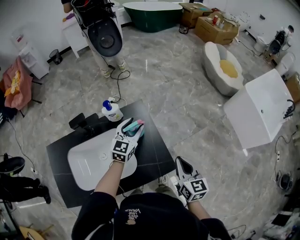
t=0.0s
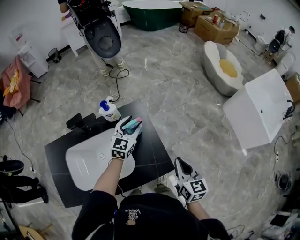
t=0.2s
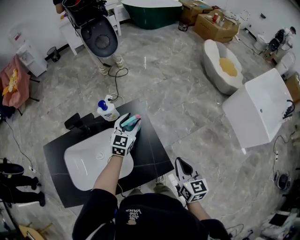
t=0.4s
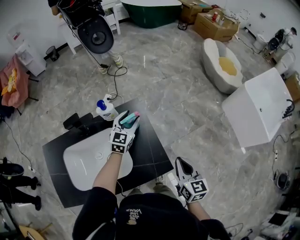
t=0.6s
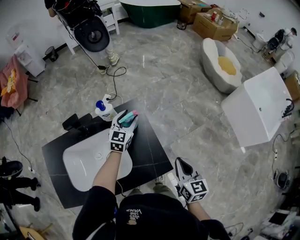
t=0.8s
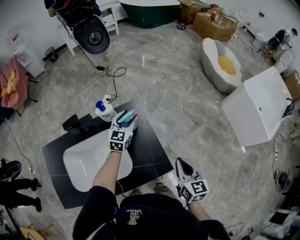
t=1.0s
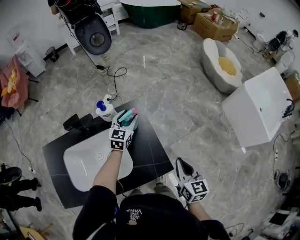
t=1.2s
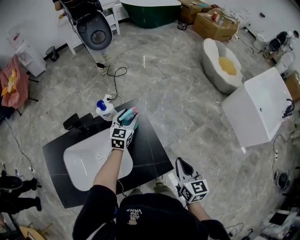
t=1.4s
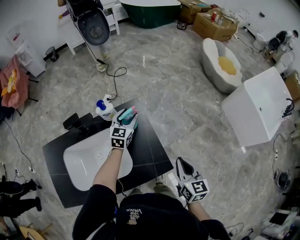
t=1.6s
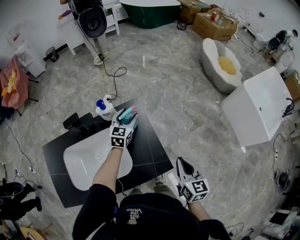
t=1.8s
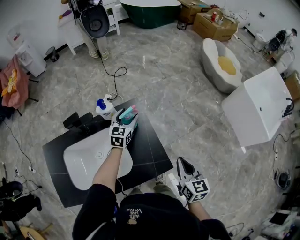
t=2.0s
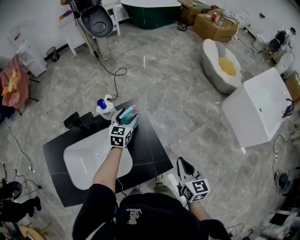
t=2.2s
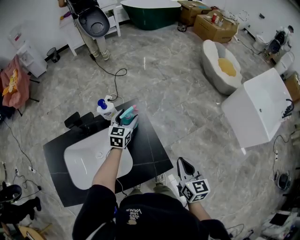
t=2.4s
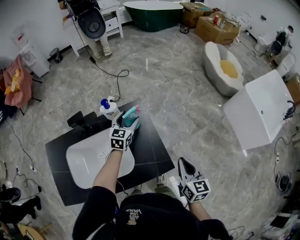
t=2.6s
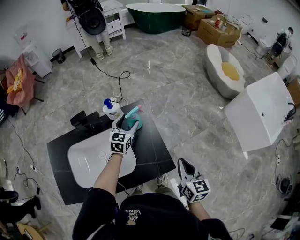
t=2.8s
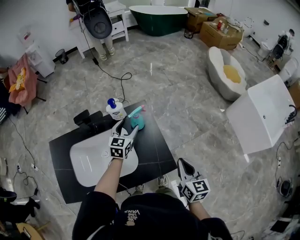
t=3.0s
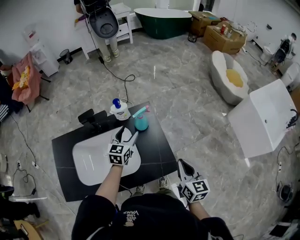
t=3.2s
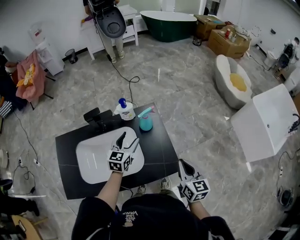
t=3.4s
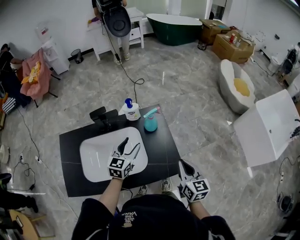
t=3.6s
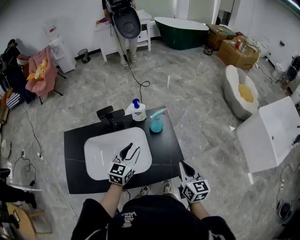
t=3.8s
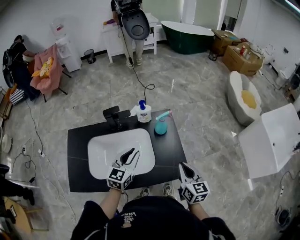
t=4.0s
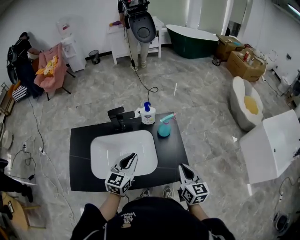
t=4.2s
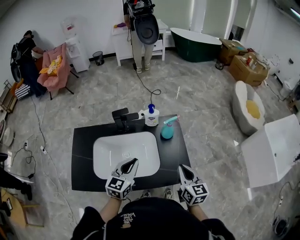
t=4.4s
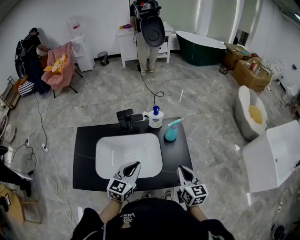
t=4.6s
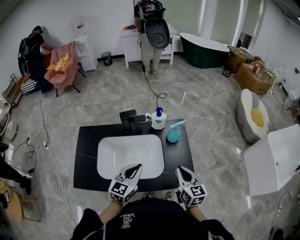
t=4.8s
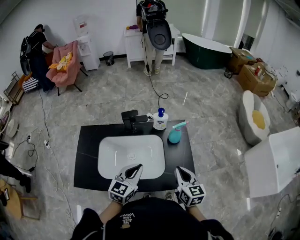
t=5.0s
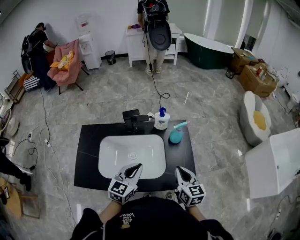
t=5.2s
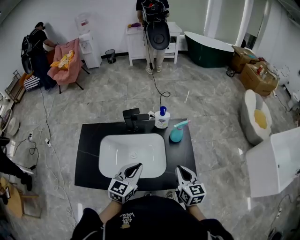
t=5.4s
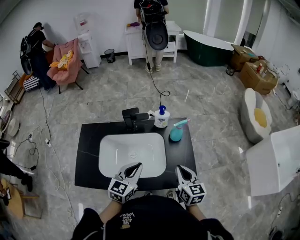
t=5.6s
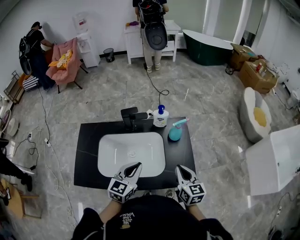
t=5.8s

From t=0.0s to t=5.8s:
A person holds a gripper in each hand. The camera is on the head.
From t=0.0s to t=1.4s: The left gripper heads forward, covering some 5 cm.
From t=1.4s to t=2.8s: The grippers make only small movements.
From t=2.8s to t=4.4s: The right gripper travels to the left by about 15 cm, while the left gripper travels backward and to the left by approximately 30 cm, and closes up.
From t=4.4s to t=5.8s: The grippers stay close to where they were, moving slightly.

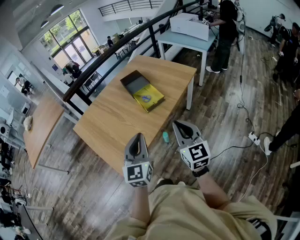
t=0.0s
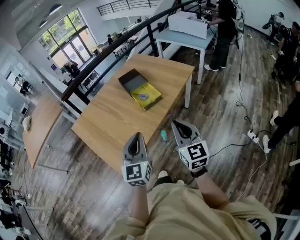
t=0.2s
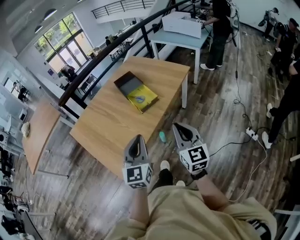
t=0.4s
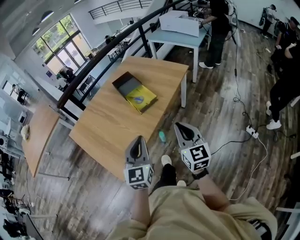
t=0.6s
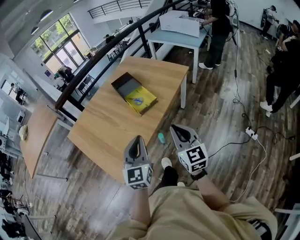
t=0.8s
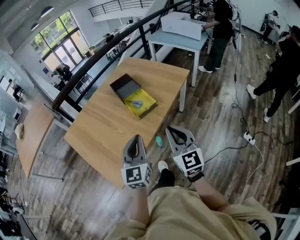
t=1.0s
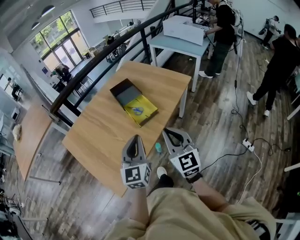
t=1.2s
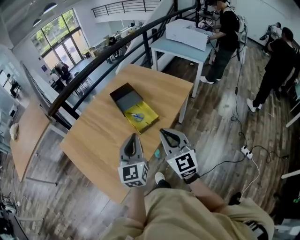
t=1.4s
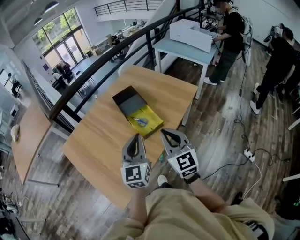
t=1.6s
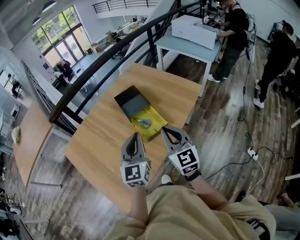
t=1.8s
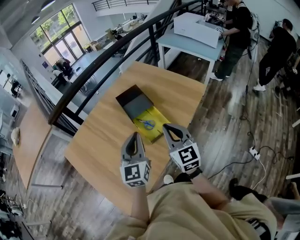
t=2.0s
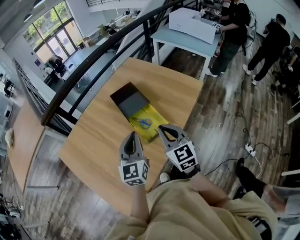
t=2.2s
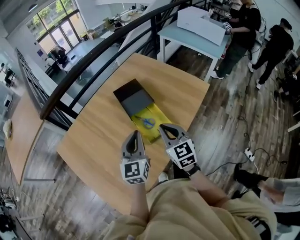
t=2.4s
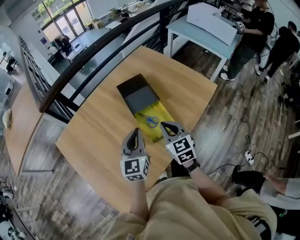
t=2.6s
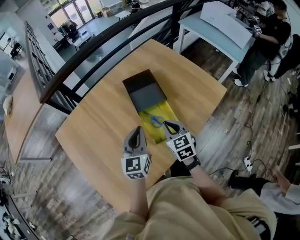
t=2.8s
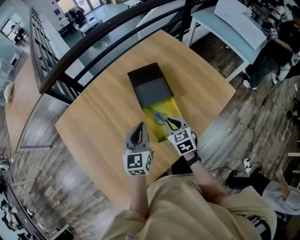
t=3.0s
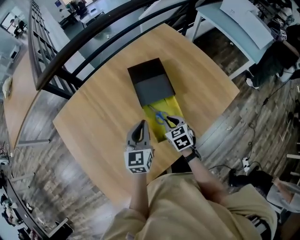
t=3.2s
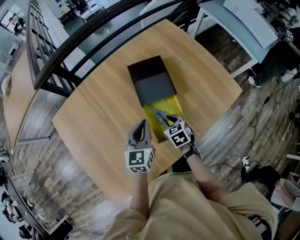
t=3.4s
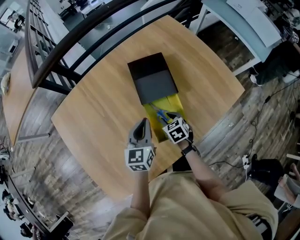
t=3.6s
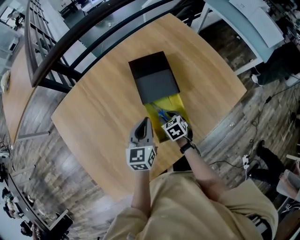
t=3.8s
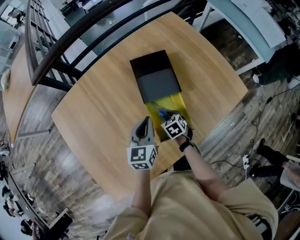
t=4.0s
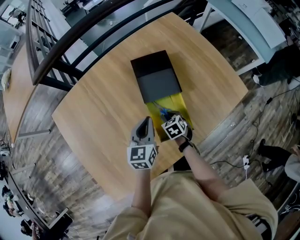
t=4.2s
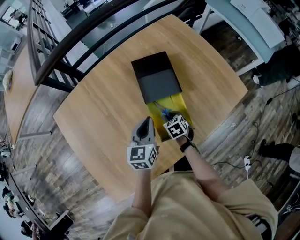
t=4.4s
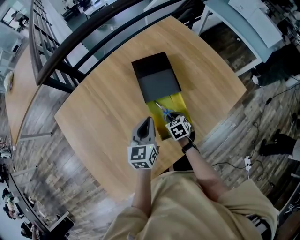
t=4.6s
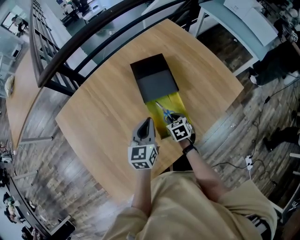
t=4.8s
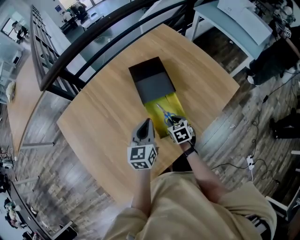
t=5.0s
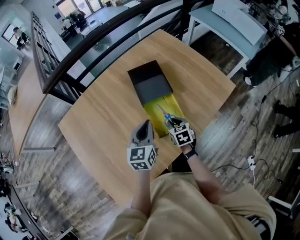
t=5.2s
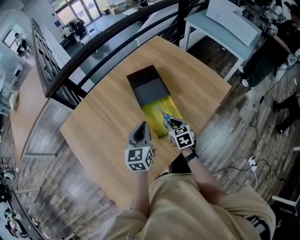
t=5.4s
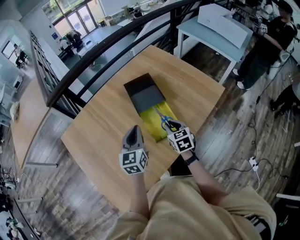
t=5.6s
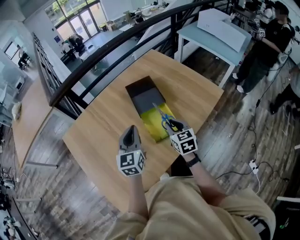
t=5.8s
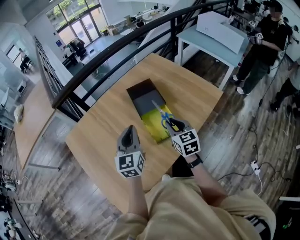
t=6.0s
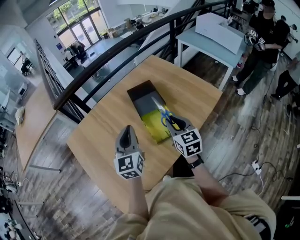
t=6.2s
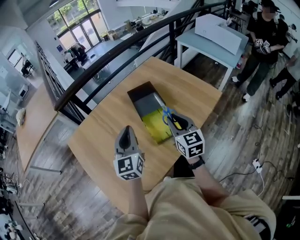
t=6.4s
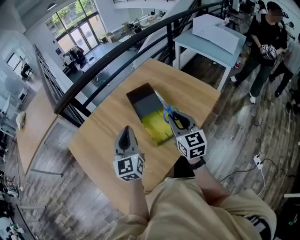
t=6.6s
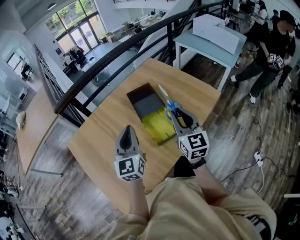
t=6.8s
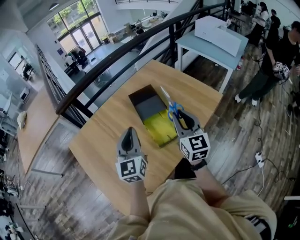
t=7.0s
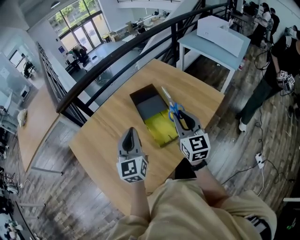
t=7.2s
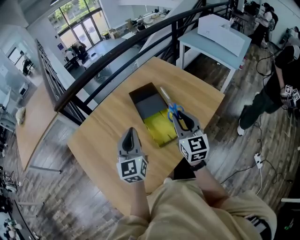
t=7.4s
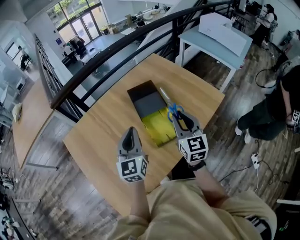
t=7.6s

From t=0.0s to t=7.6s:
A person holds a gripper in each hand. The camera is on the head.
From t=0.0s to t=1.6s: The grippers both shift forward by some 25 cm.
From t=1.6s to t=3.0s: Both grippers travel together forward and downward, roughly 30 cm. The right gripper tilts its fingers about 40 degrees downward; the left gripper changes its angle by some 20 degrees.
From t=3.0s to t=4.6s: The left gripper travels downward by some 5 cm. Meanwhile the right gripper travels downward by roughly 15 cm.
From t=4.6s to t=6.0s: The left gripper shifts roughly 15 cm upward and backward, and swivels some 20 degrees. Meanwhile the right gripper is displaced upward and backward by some 25 cm, and tips its fingers upward by some 40 degrees.
From t=6.0s to t=7.6s: The right gripper heads upward, covering approximately 10 cm.

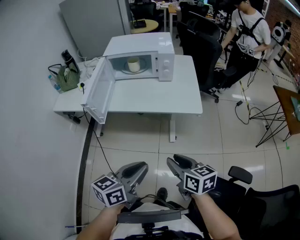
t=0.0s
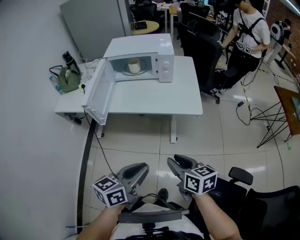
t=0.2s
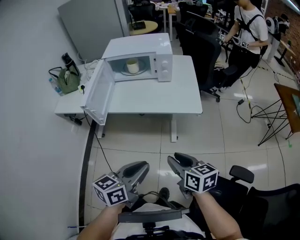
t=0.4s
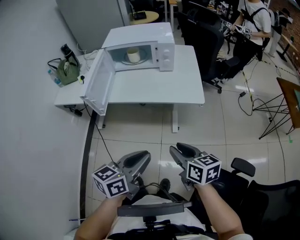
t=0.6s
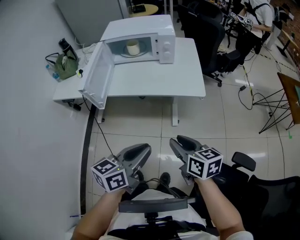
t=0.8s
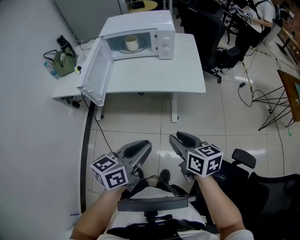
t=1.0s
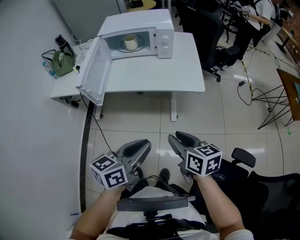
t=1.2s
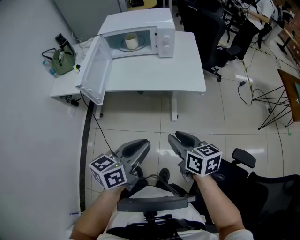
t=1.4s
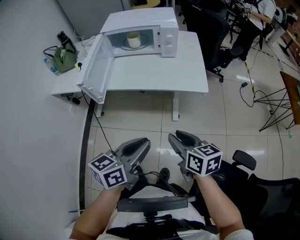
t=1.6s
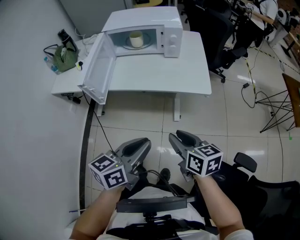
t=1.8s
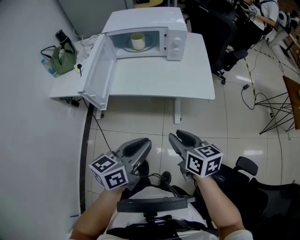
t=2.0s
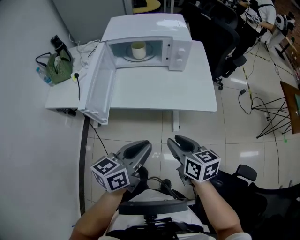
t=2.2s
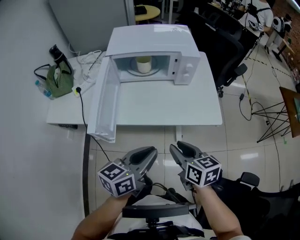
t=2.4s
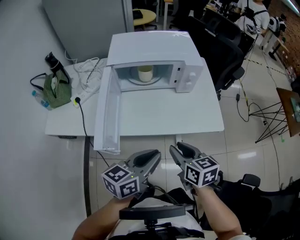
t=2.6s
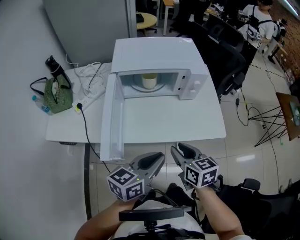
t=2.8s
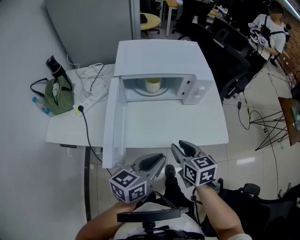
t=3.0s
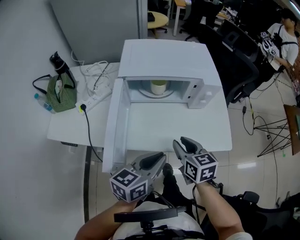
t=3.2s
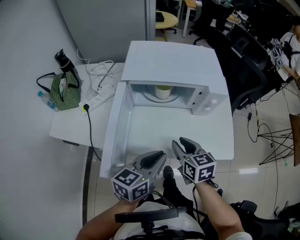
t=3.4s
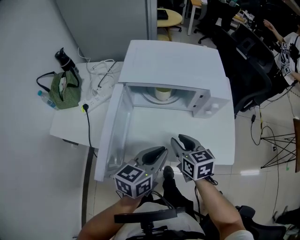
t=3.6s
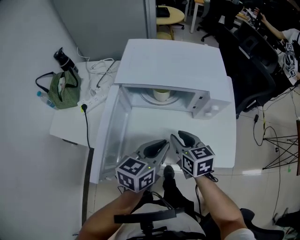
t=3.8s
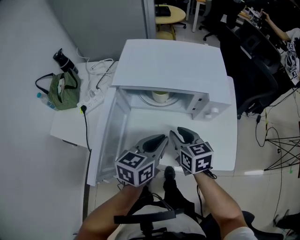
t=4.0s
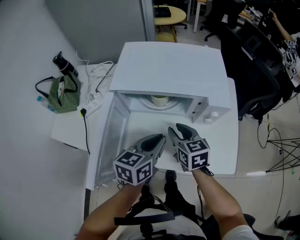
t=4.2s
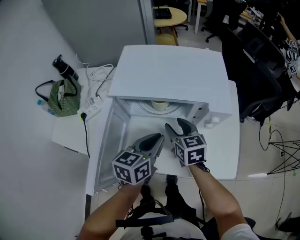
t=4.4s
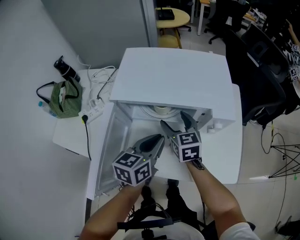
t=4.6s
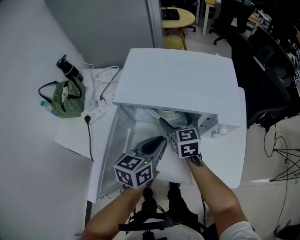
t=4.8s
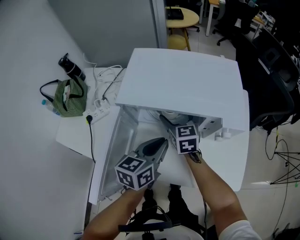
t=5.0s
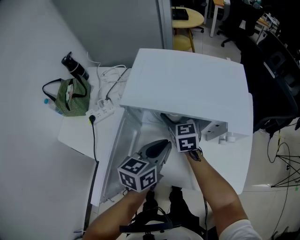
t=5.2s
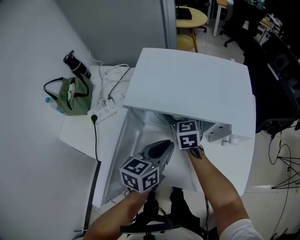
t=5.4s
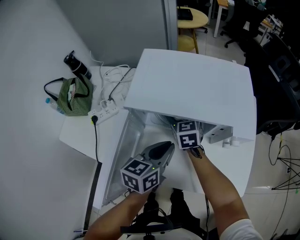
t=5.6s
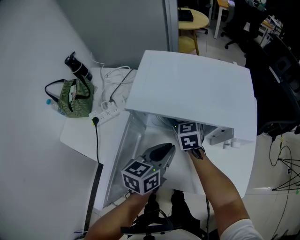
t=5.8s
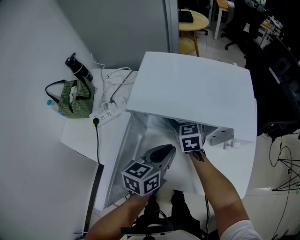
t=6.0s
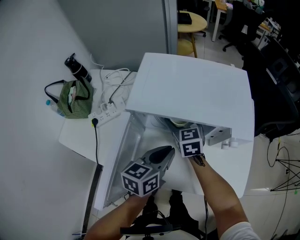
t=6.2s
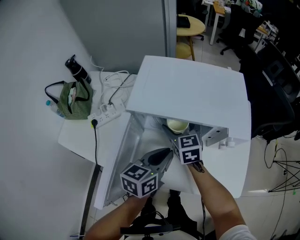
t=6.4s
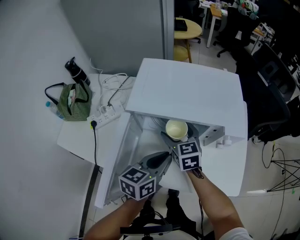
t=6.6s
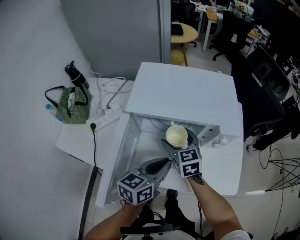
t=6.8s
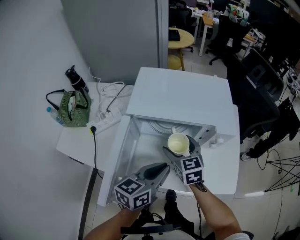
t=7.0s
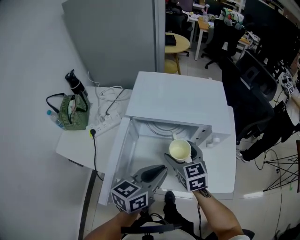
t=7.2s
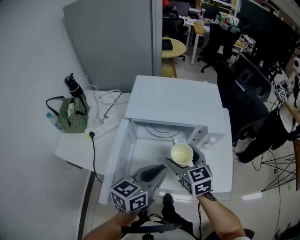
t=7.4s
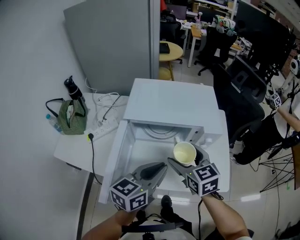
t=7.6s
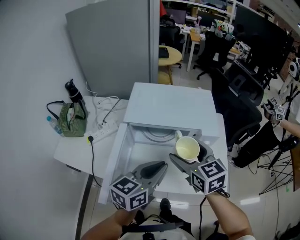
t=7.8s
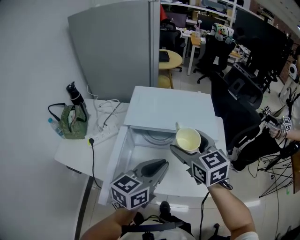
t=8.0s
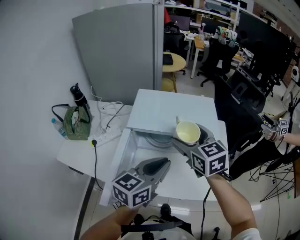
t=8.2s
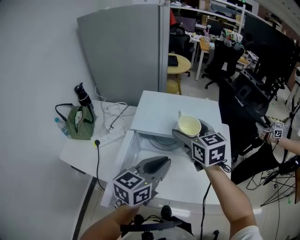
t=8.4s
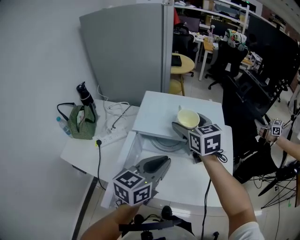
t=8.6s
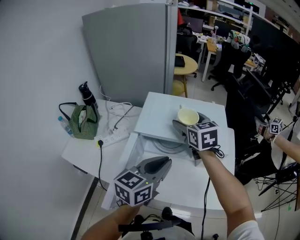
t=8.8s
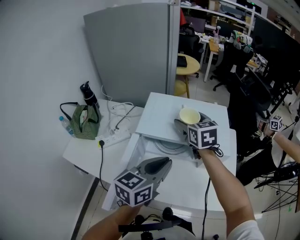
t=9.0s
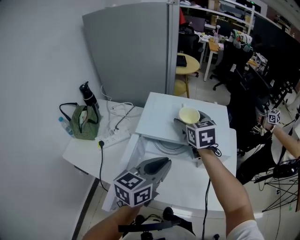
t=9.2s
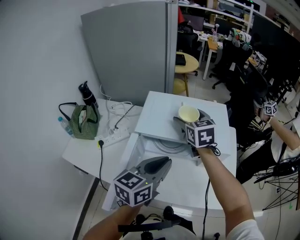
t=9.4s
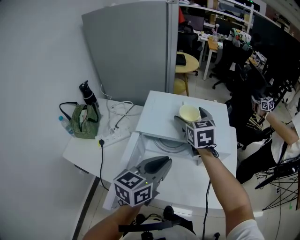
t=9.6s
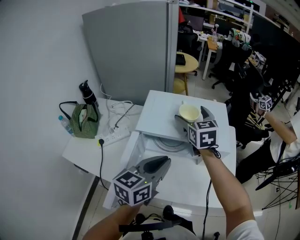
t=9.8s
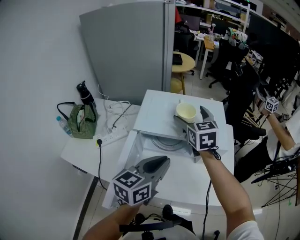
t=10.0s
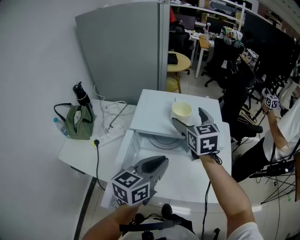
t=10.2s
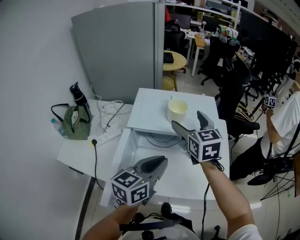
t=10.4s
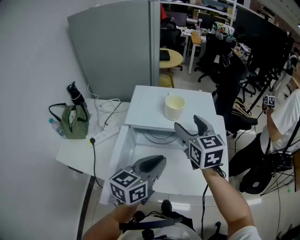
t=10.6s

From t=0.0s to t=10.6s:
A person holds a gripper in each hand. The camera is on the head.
From t=0.0s to t=1.6s: The grippers move only a little.
From t=1.6s to t=3.0s: Both grippers travel together forward and to the left, approximately 35 cm.
From t=3.0s to t=4.6s: The grippers both shift forward by some 30 cm. The right gripper opens. The left gripper turns by some 20 degrees.
From t=4.6s to t=6.0s: The right gripper moves forward and to the left, approximately 10 cm.
From t=6.0s to t=7.6s: The left gripper moves upward and backward, roughly 20 cm. Meanwhile the right gripper heads backward and upward, covering roughly 25 cm.
From t=7.6s to t=9.0s: The left gripper is displaced forward by some 5 cm, while the right gripper heads forward, covering about 20 cm.
From t=9.0s to t=10.6s: The left gripper changes place by approximately 5 cm. Meanwhile the right gripper travels backward and to the right by roughly 15 cm.
